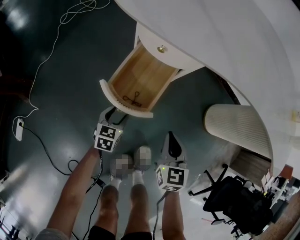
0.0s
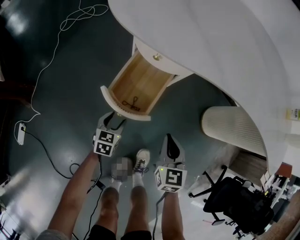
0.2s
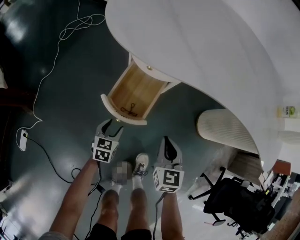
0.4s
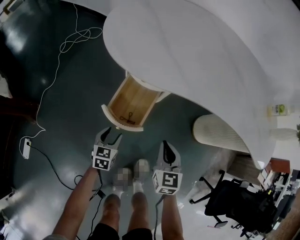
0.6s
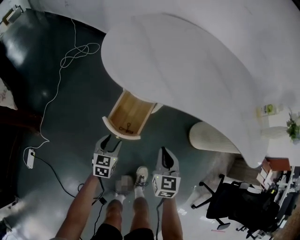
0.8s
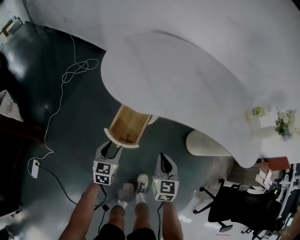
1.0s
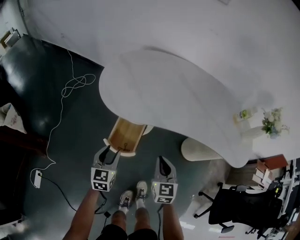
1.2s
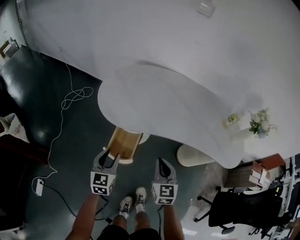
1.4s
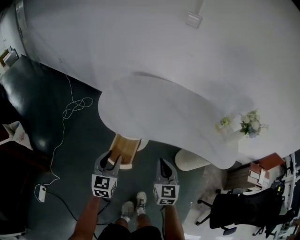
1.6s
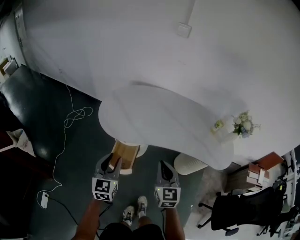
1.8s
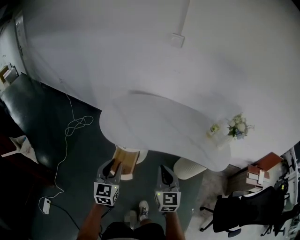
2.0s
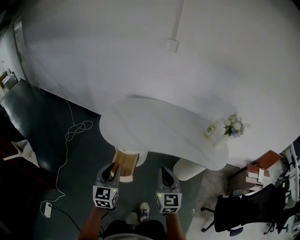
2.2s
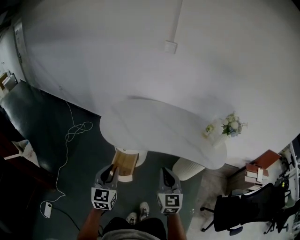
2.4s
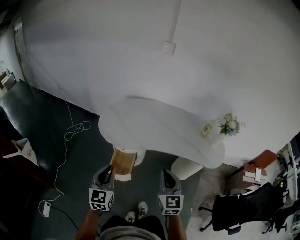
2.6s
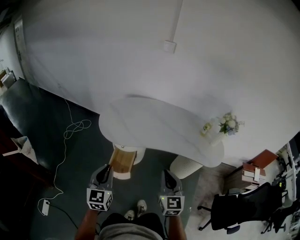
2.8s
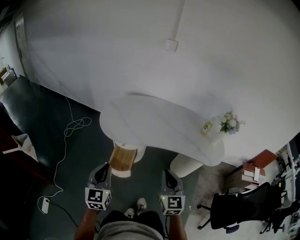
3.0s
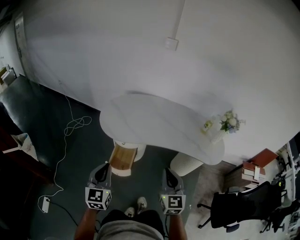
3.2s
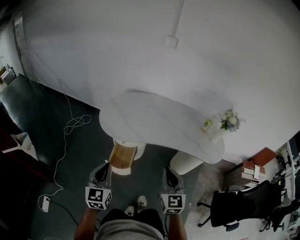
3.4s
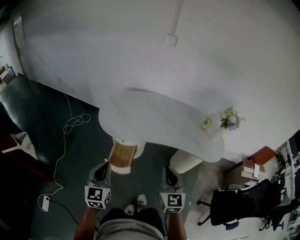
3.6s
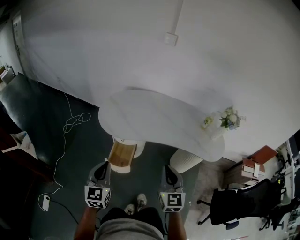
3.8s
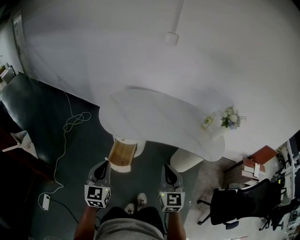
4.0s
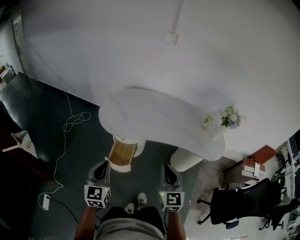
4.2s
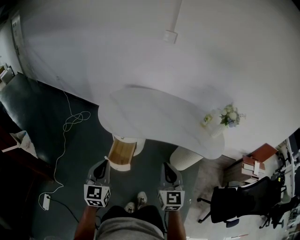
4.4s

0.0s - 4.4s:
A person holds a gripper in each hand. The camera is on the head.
0.0s - 1.4s: Both grippers move upward, some 40 cm. The left gripper turns by about 30 degrees.
1.4s - 3.0s: Both grippers move upward and backward, about 25 cm. The left gripper closes its fingers.
3.0s - 4.4s: Both grippers stay about where they are.

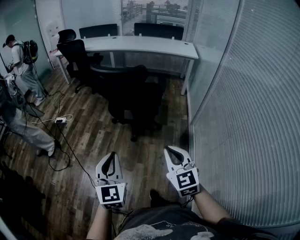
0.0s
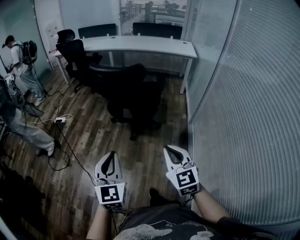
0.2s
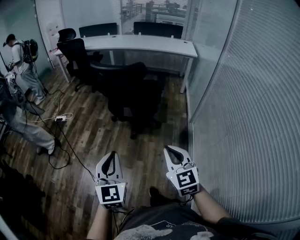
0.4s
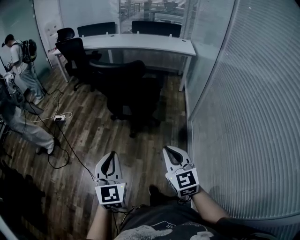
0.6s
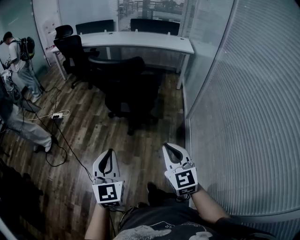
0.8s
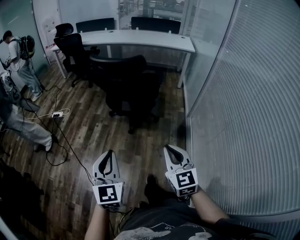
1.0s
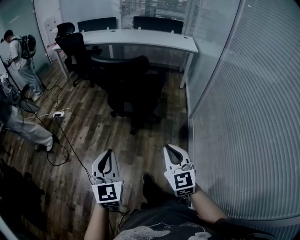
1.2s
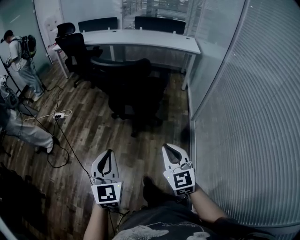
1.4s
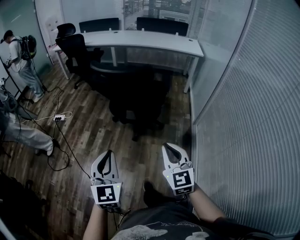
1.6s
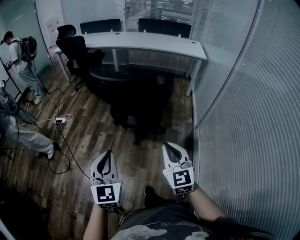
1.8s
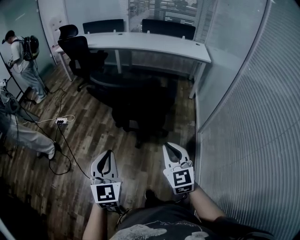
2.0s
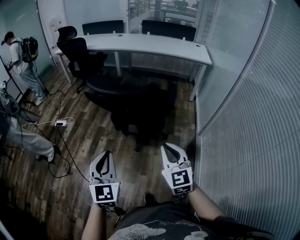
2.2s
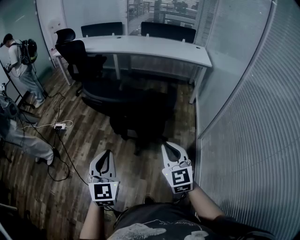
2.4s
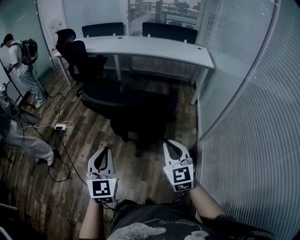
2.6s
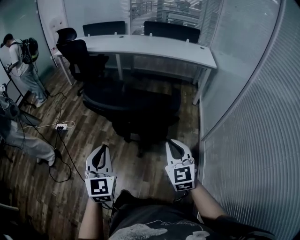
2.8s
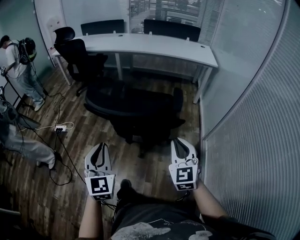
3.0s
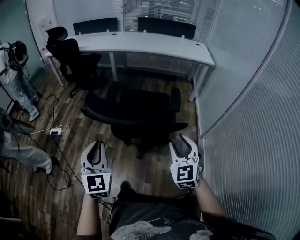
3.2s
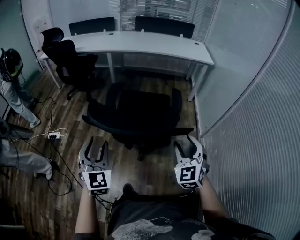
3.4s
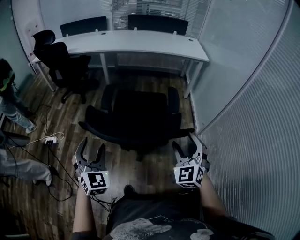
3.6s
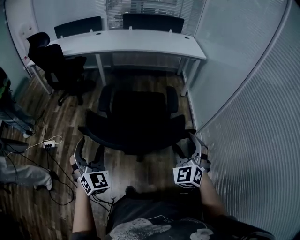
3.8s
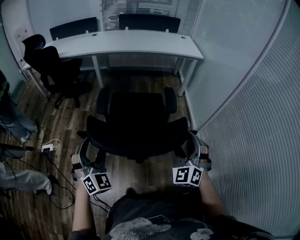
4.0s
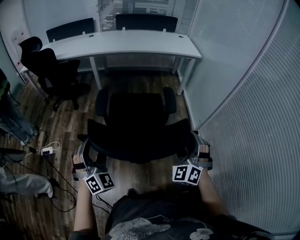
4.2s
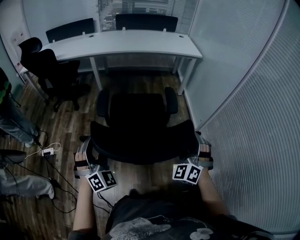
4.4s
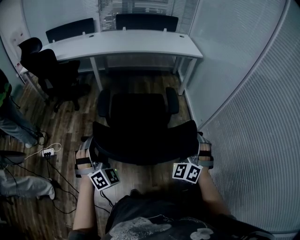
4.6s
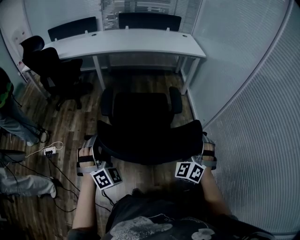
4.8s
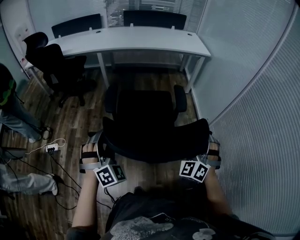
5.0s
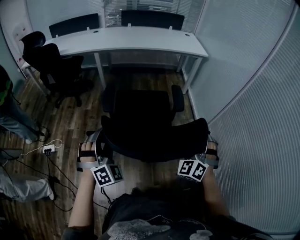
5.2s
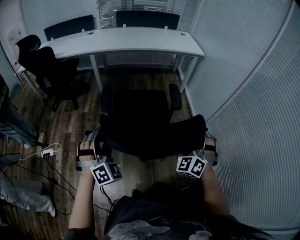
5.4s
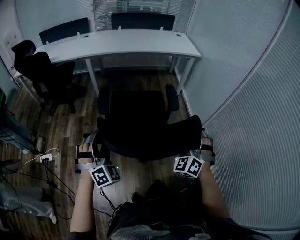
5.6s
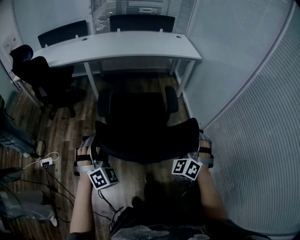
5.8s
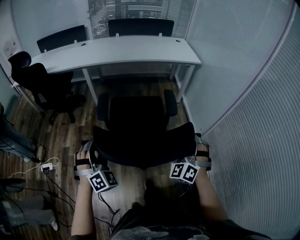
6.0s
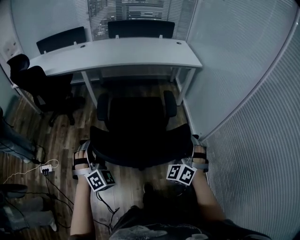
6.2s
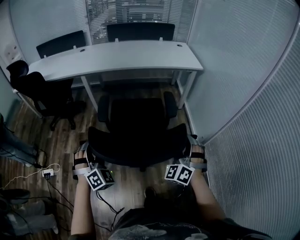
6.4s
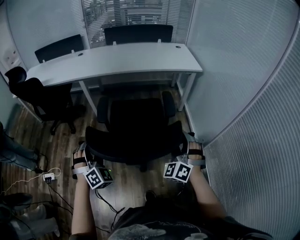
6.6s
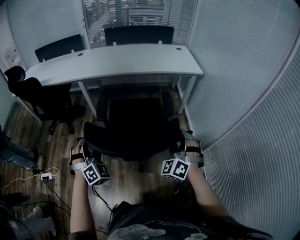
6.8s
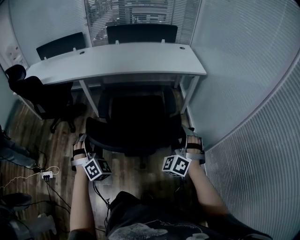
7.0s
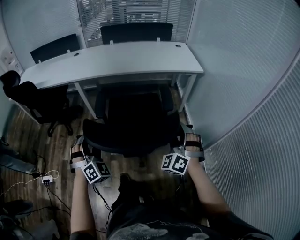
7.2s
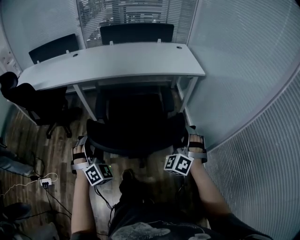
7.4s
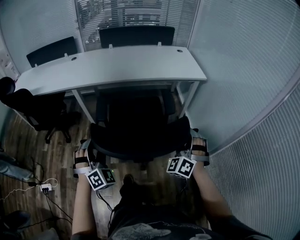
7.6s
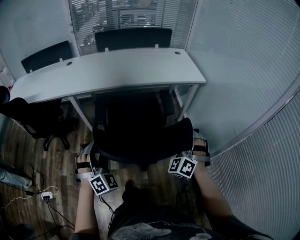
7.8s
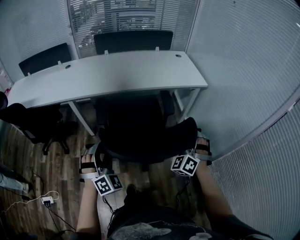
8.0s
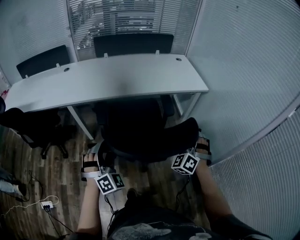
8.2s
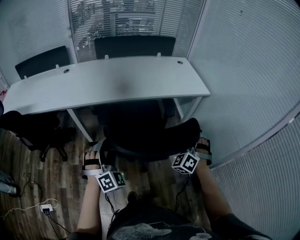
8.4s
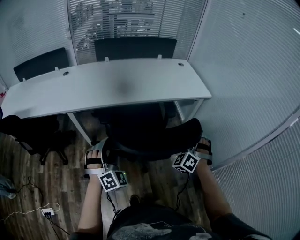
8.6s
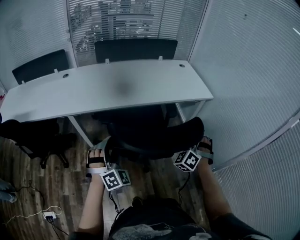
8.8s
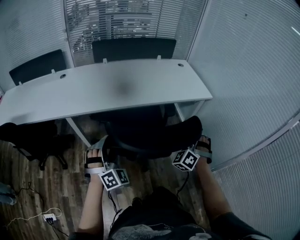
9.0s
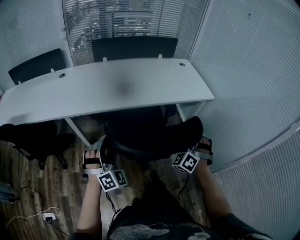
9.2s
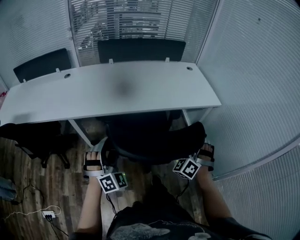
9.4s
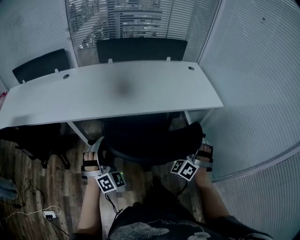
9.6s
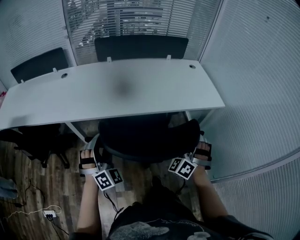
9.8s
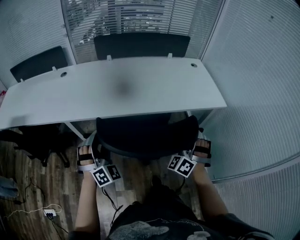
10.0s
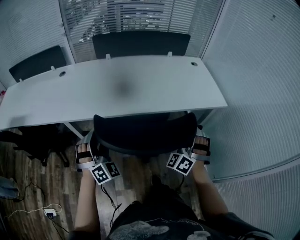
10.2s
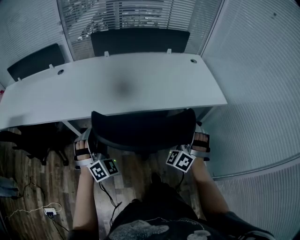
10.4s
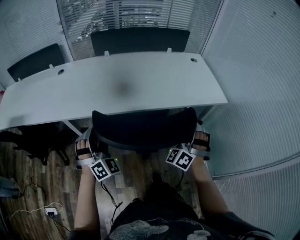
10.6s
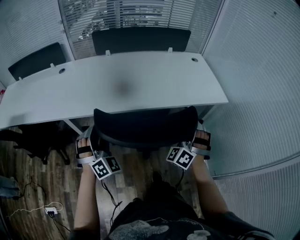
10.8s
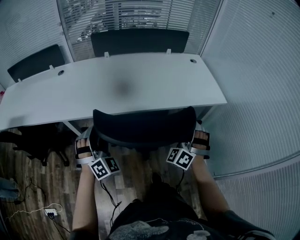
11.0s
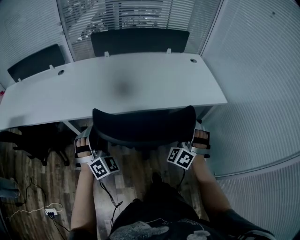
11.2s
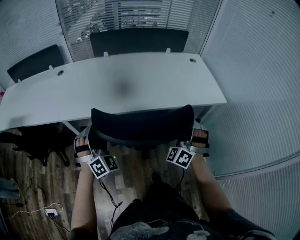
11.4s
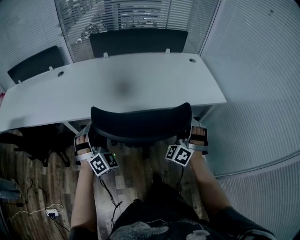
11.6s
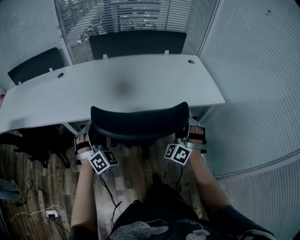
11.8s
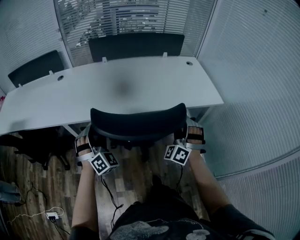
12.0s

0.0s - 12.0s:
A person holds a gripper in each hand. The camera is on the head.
0.0s - 1.6s: The two grippers go about 5 cm forward.
1.6s - 3.0s: The grippers both shift forward by some 25 cm.
3.0s - 4.4s: The left gripper shifts some 20 cm forward and to the left, rolls clockwise, seen from behind, by approximately 50 degrees, and opens, while the right gripper moves forward, some 10 cm, swivels some 50 degrees, and opens its fingers.
4.4s - 6.0s: The two grippers go approximately 15 cm forward.
6.0s - 7.6s: Both grippers travel together forward, about 30 cm.
7.6s - 9.0s: Both grippers travel together forward, some 25 cm.
9.0s - 10.4s: Both grippers move forward, some 15 cm.
10.4s - 12.0s: The grippers stay close to where they were, moving slightly.

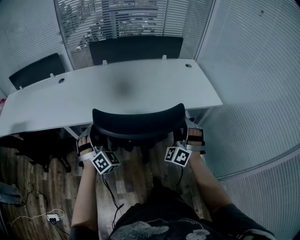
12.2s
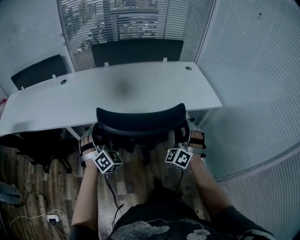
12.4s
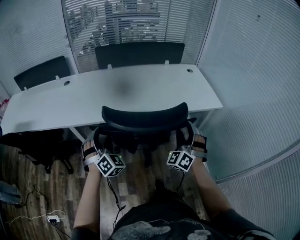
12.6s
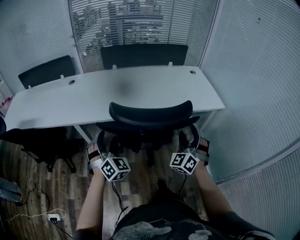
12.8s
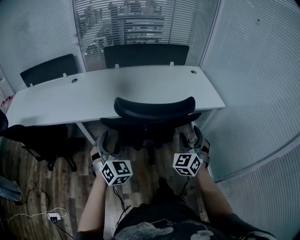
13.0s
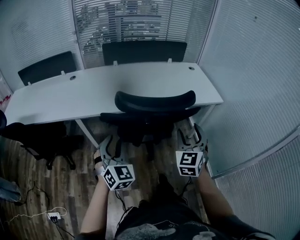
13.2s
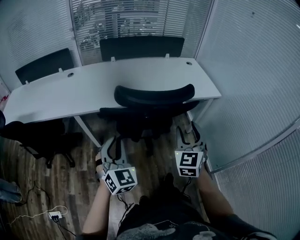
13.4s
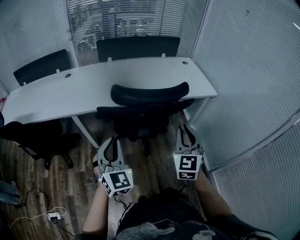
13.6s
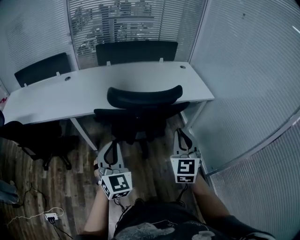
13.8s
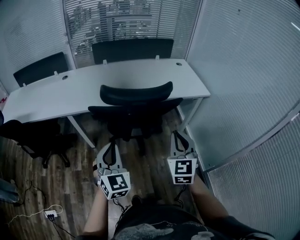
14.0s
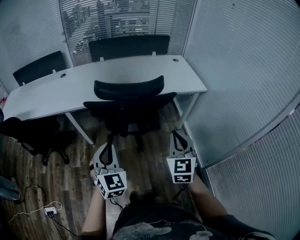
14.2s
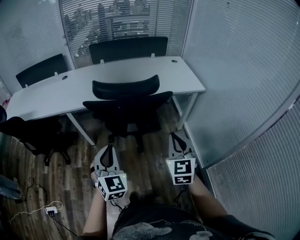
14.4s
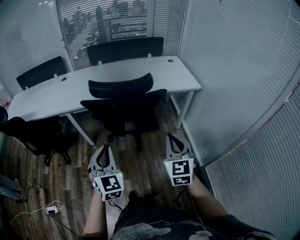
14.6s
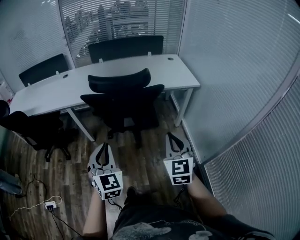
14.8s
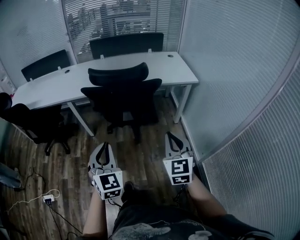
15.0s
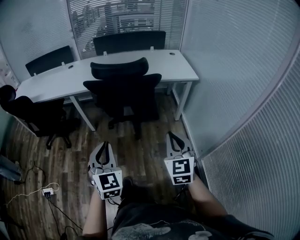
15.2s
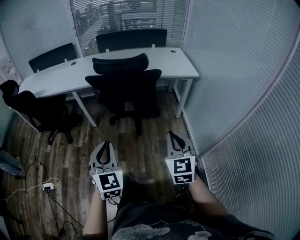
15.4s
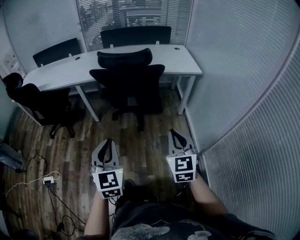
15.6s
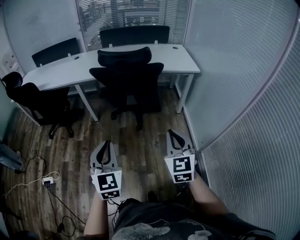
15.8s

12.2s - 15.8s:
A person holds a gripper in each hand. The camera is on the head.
12.2s - 14.0s: The two grippers go about 25 cm backward. The right gripper rotates around the line of its fingers by about 50 degrees, clockwise from behind, and closes up; the left gripper swivels roughly 40 degrees, and closes up.
14.0s - 15.8s: Both grippers travel together backward, approximately 30 cm.

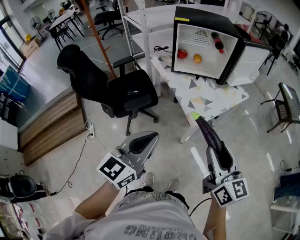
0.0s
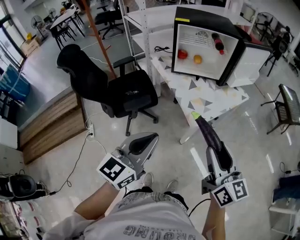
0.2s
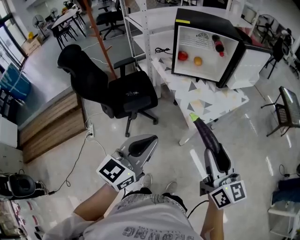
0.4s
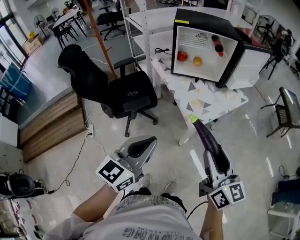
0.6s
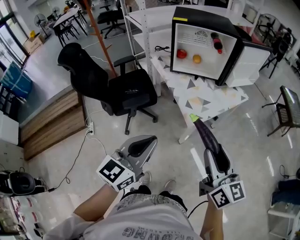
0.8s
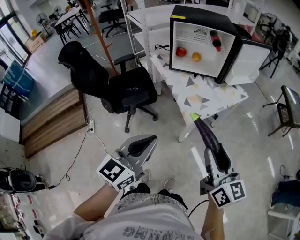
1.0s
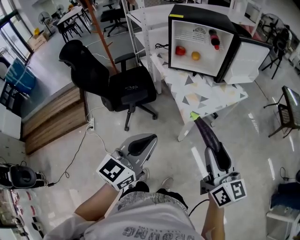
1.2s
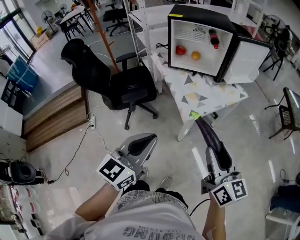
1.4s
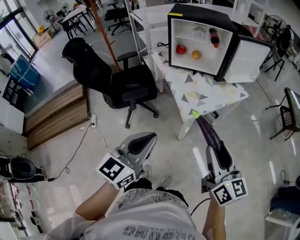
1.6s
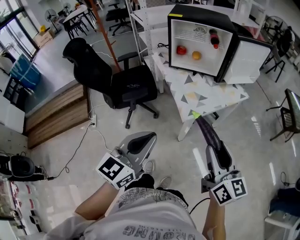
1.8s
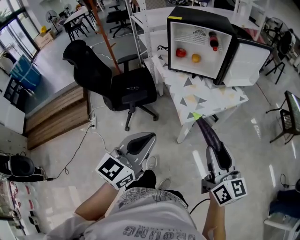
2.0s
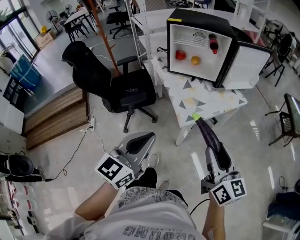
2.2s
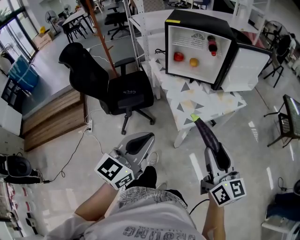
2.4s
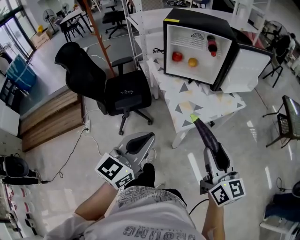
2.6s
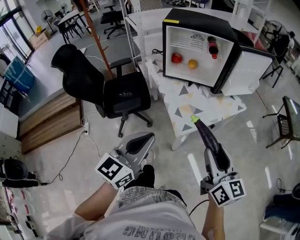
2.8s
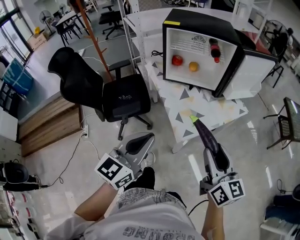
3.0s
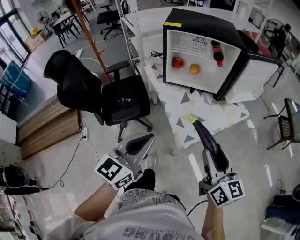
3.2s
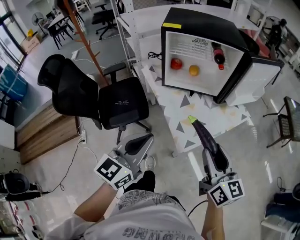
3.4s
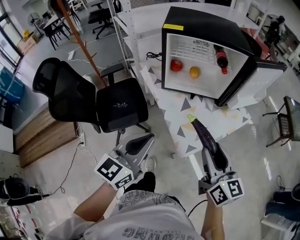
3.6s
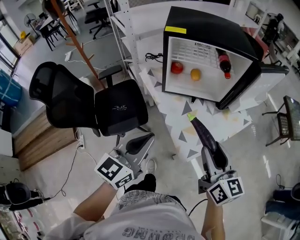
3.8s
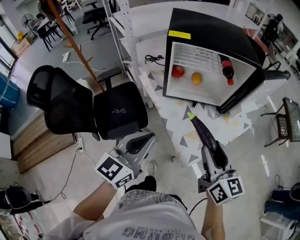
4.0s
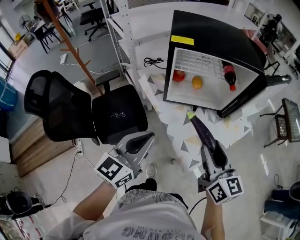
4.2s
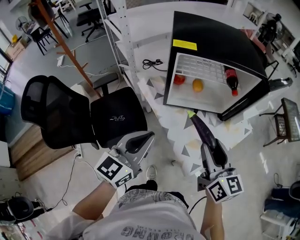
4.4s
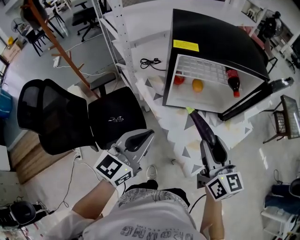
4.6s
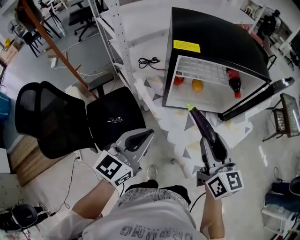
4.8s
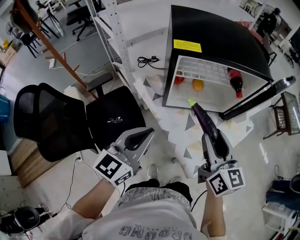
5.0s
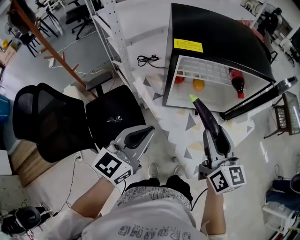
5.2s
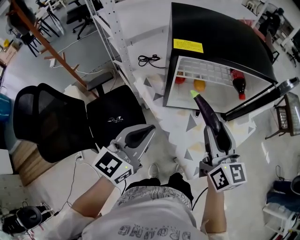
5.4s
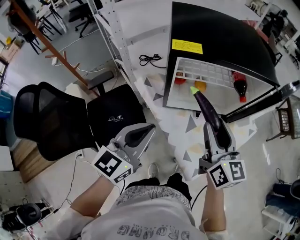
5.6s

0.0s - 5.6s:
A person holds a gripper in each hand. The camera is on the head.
0.0s - 1.4s: Both grippers move to the right, some 10 cm.
1.4s - 2.8s: The two grippers go approximately 10 cm forward.
2.8s - 4.2s: The grippers both shift forward and to the left by about 30 cm.
4.2s - 5.6s: Both grippers move forward, approximately 15 cm.
